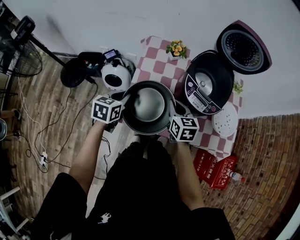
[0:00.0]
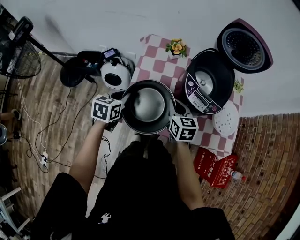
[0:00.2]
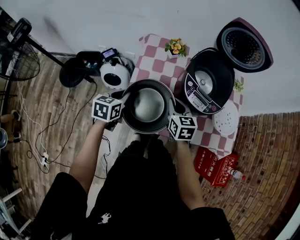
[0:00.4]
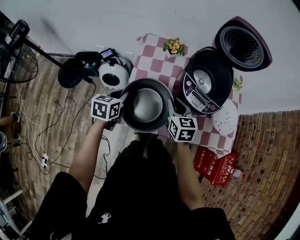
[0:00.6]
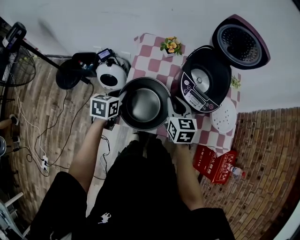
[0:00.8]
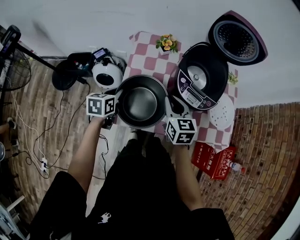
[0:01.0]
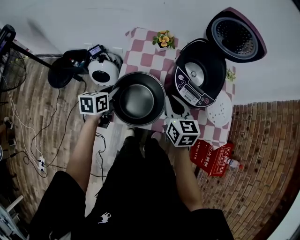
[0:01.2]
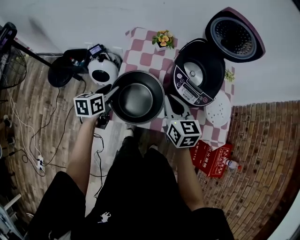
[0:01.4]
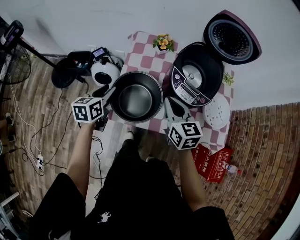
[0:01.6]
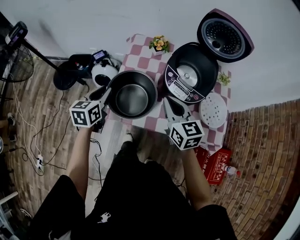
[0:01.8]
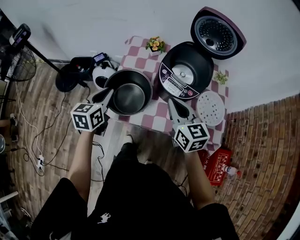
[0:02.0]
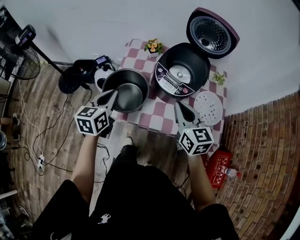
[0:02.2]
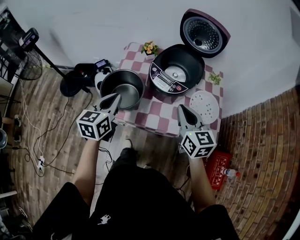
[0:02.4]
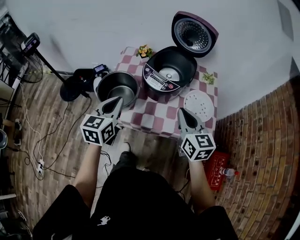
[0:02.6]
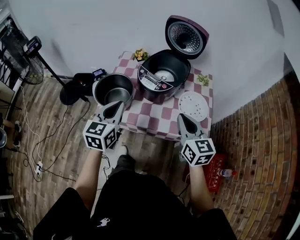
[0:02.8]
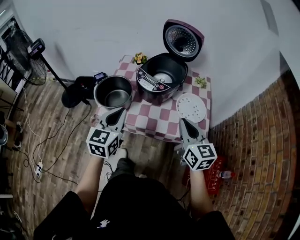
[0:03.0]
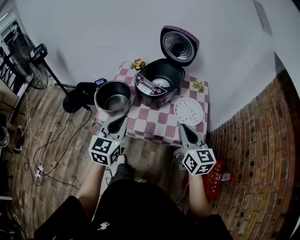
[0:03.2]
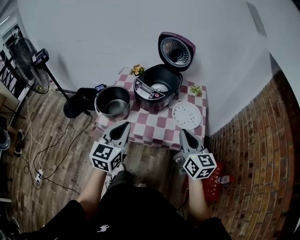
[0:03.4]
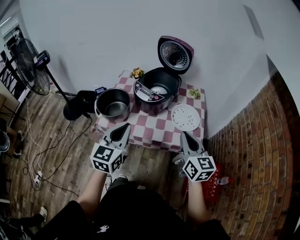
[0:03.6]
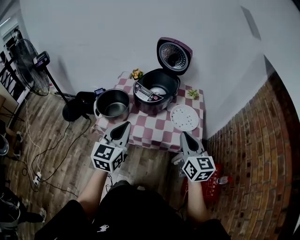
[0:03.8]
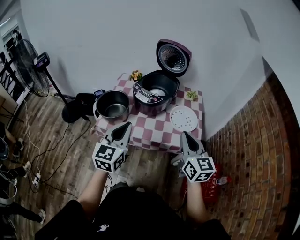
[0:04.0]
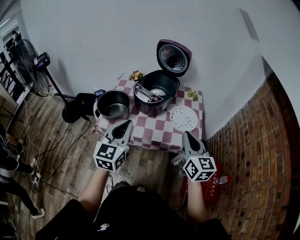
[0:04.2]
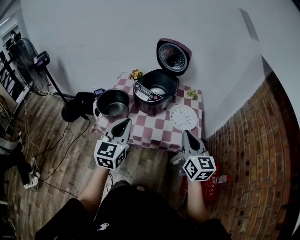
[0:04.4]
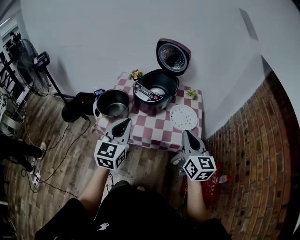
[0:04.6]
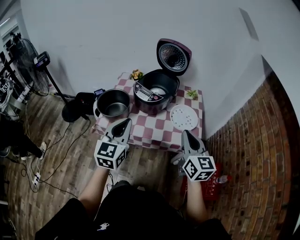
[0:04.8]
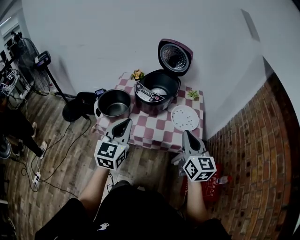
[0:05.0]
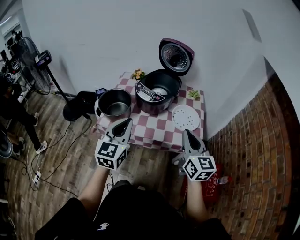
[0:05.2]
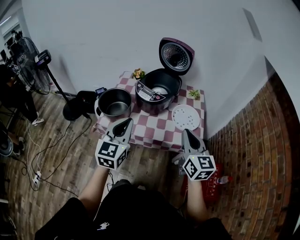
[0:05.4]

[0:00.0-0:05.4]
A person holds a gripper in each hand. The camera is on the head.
0:00.0 to 0:01.4: The right gripper travels upward by roughly 5 cm, while the left gripper opens its fingers.
0:01.4 to 0:02.8: The right gripper heads to the right, backward and upward, covering about 30 cm; the left gripper moves backward, to the right and upward, about 35 cm, turns by approximately 40 degrees, and closes up.
0:02.8 to 0:04.0: The left gripper travels backward, to the right and upward by about 15 cm. The right gripper heads backward and to the right, covering approximately 10 cm.
0:04.0 to 0:05.4: The two grippers keep their place.

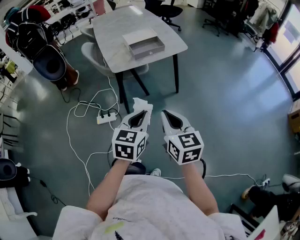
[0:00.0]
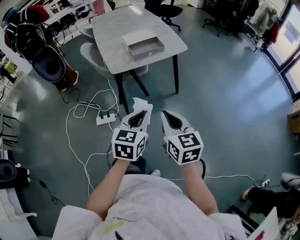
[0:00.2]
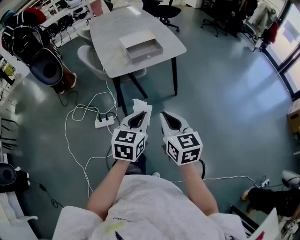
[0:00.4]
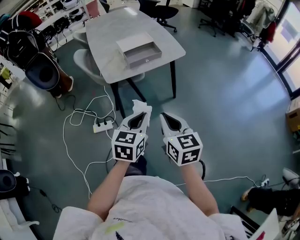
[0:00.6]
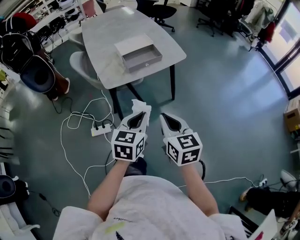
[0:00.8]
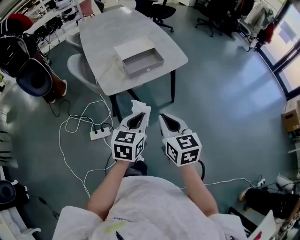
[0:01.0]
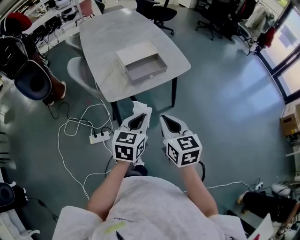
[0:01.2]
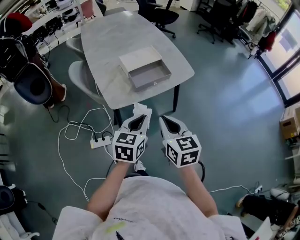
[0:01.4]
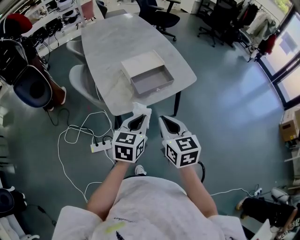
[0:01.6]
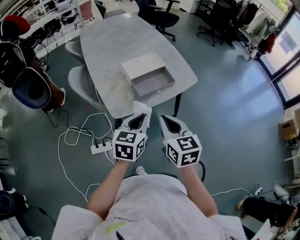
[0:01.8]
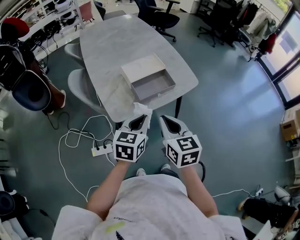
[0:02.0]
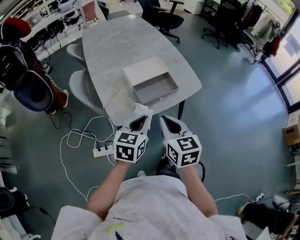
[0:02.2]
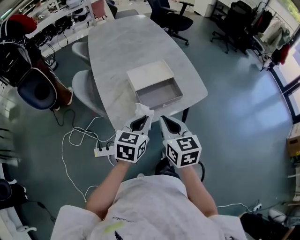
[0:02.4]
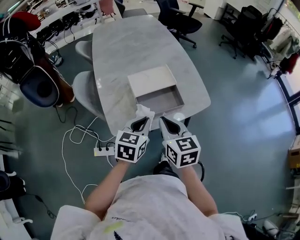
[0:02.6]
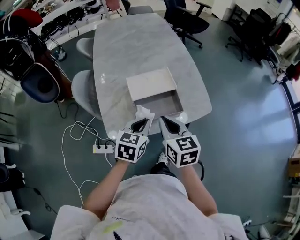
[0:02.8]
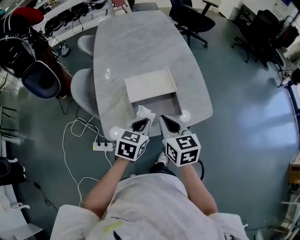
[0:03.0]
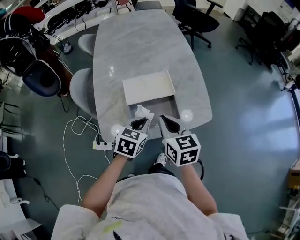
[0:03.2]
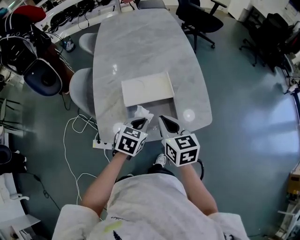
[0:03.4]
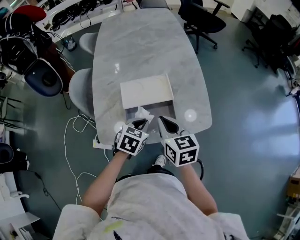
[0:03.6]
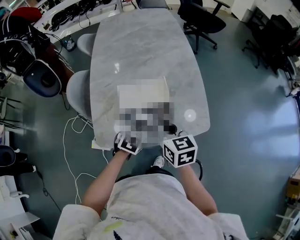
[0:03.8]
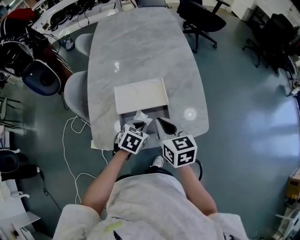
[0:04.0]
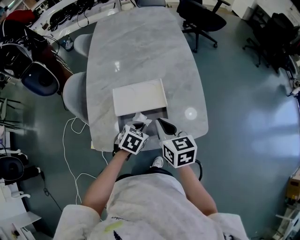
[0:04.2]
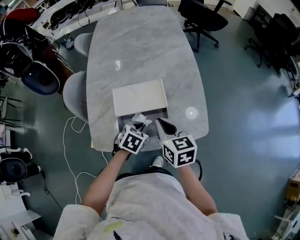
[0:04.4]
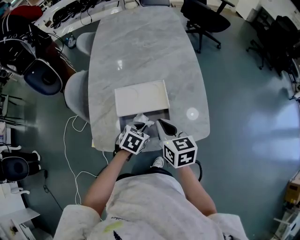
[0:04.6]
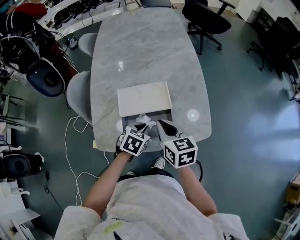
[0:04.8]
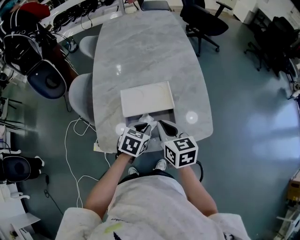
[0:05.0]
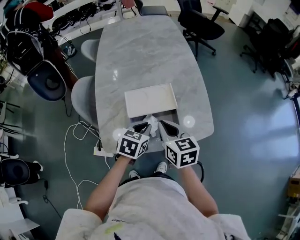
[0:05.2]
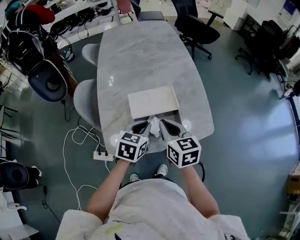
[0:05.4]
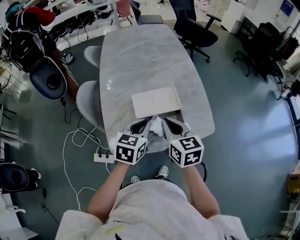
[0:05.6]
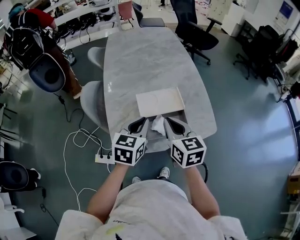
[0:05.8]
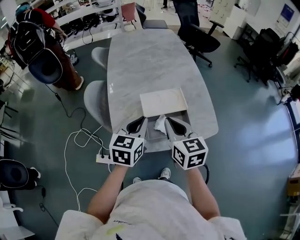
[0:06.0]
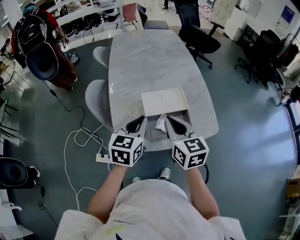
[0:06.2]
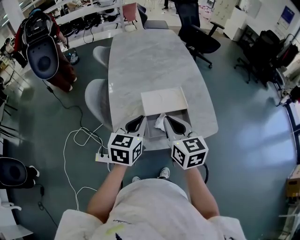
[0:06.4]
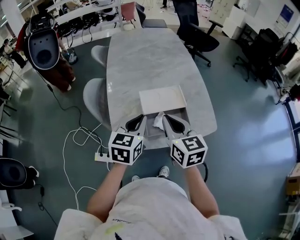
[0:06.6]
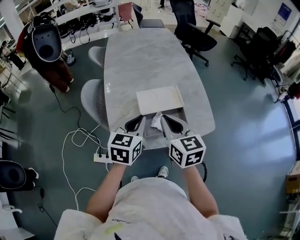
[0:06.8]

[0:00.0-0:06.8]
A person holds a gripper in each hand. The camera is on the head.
0:00.0 to 0:01.4: Both grippers move forward, roughly 25 cm.
0:01.4 to 0:02.8: The two grippers go about 20 cm forward.
0:02.8 to 0:04.0: The left gripper goes roughly 15 cm downward, forward and to the right, and swivels some 20 degrees. Meanwhile the right gripper moves forward and to the right, roughly 10 cm.
0:04.0 to 0:05.4: The left gripper goes about 10 cm upward and to the left, and swivels some 20 degrees. Meanwhile the right gripper travels to the left by approximately 5 cm.
0:05.4 to 0:06.8: The right gripper goes some 5 cm upward. The left gripper moves upward and to the left, approximately 10 cm.

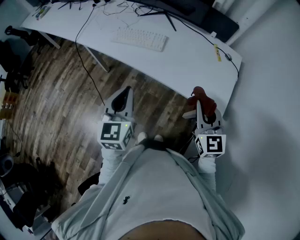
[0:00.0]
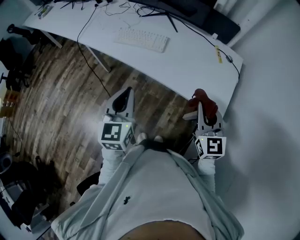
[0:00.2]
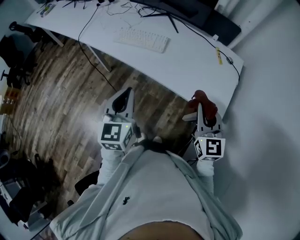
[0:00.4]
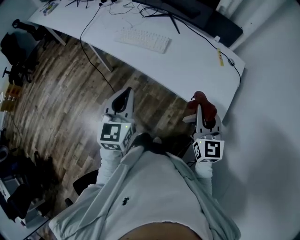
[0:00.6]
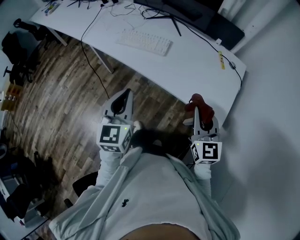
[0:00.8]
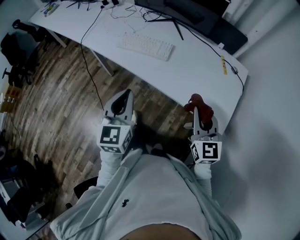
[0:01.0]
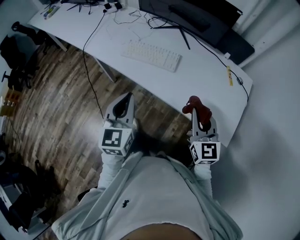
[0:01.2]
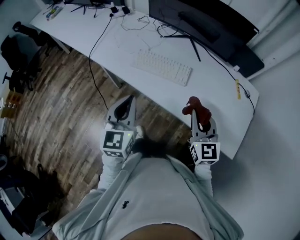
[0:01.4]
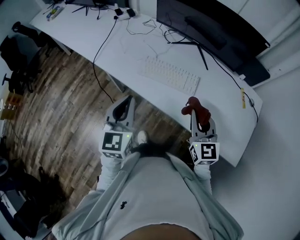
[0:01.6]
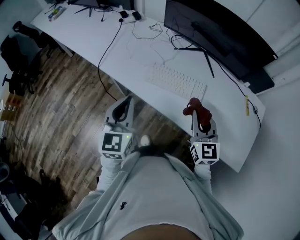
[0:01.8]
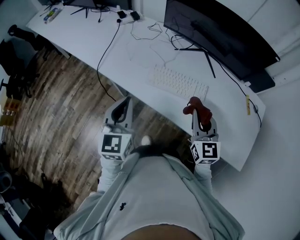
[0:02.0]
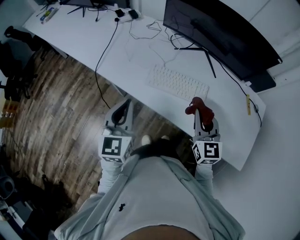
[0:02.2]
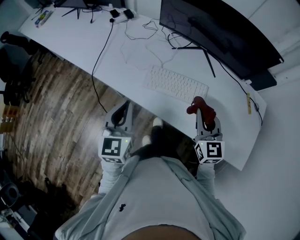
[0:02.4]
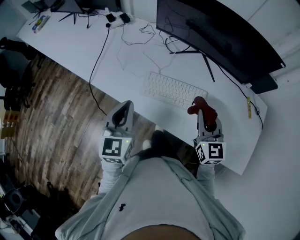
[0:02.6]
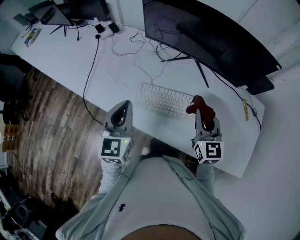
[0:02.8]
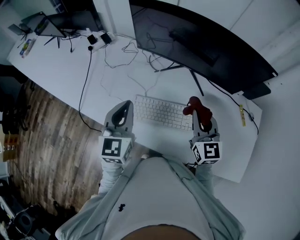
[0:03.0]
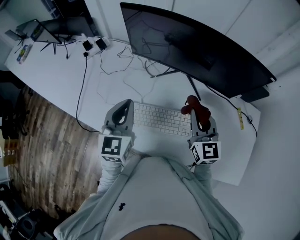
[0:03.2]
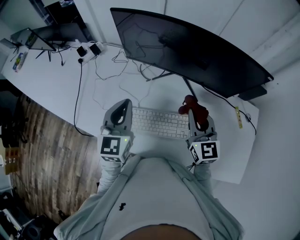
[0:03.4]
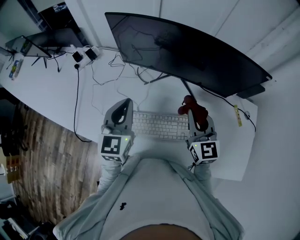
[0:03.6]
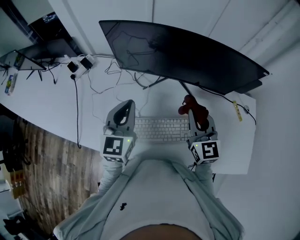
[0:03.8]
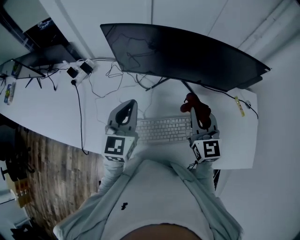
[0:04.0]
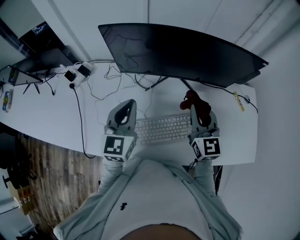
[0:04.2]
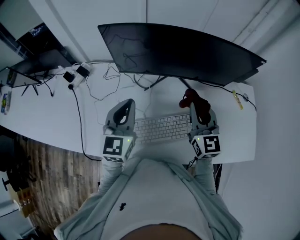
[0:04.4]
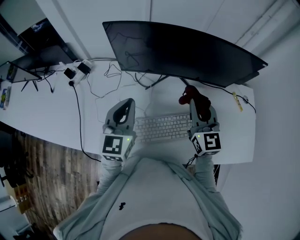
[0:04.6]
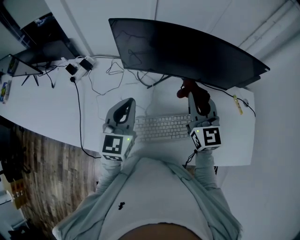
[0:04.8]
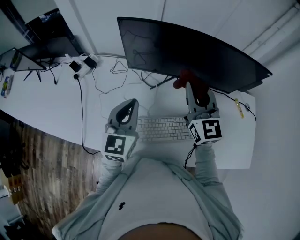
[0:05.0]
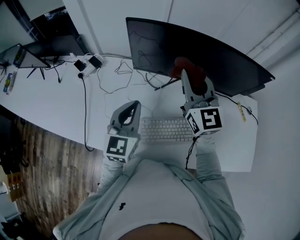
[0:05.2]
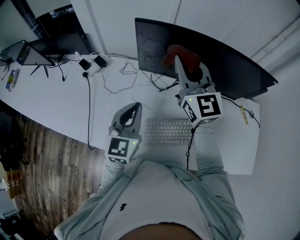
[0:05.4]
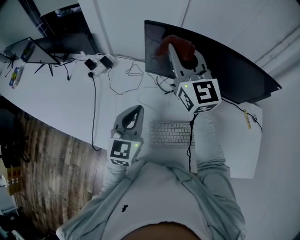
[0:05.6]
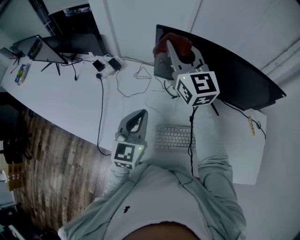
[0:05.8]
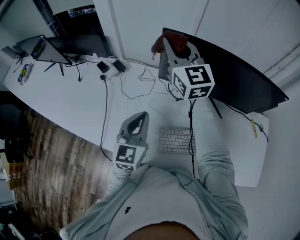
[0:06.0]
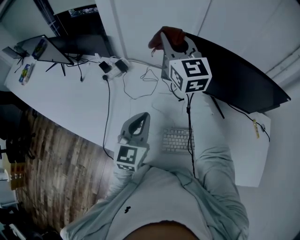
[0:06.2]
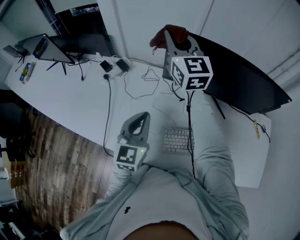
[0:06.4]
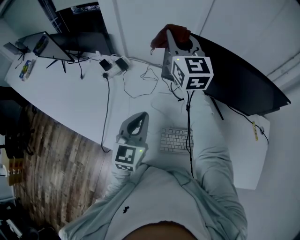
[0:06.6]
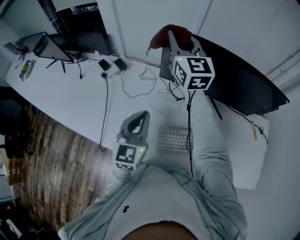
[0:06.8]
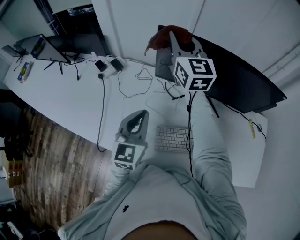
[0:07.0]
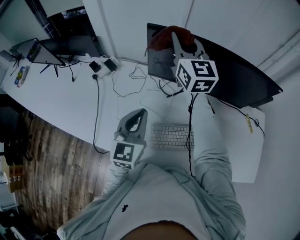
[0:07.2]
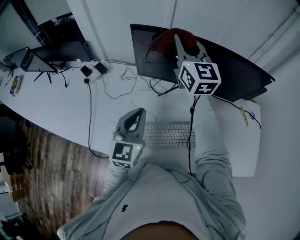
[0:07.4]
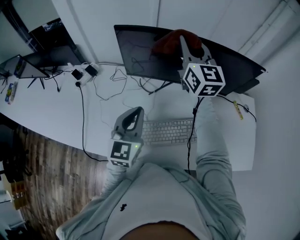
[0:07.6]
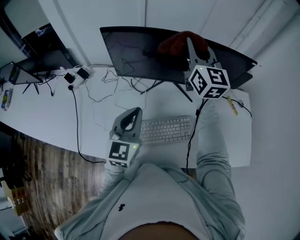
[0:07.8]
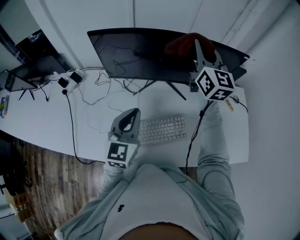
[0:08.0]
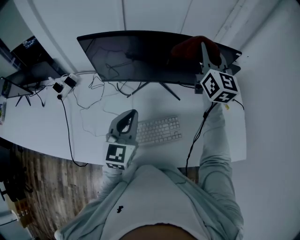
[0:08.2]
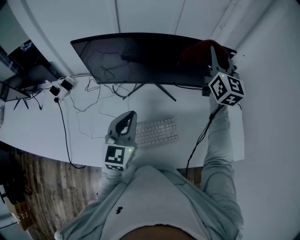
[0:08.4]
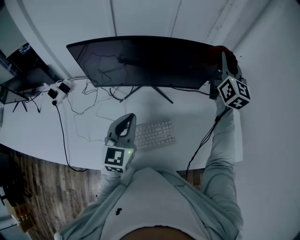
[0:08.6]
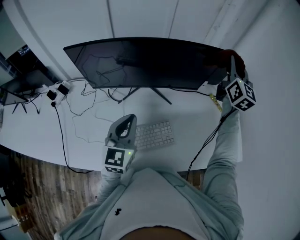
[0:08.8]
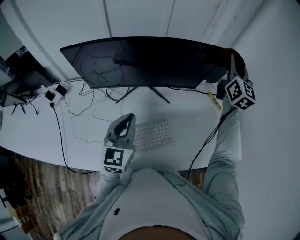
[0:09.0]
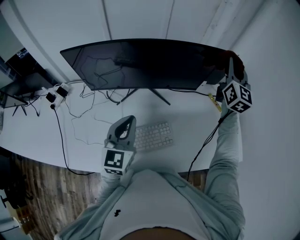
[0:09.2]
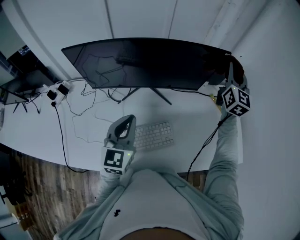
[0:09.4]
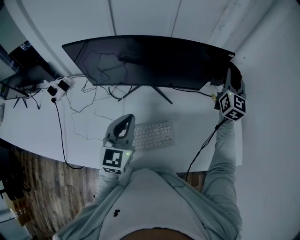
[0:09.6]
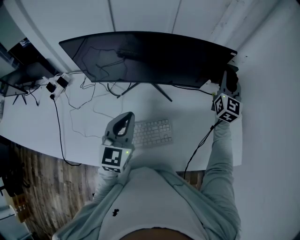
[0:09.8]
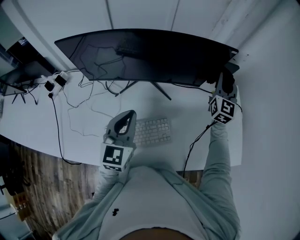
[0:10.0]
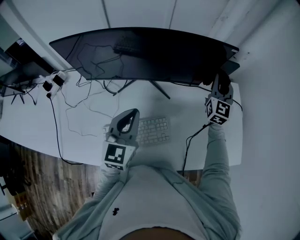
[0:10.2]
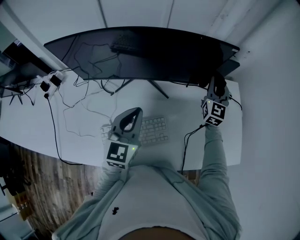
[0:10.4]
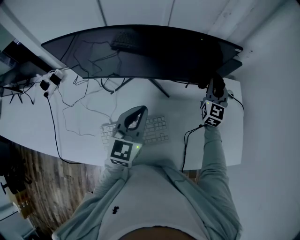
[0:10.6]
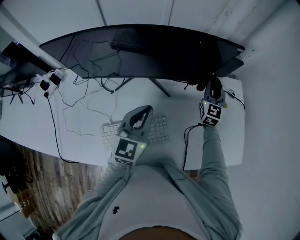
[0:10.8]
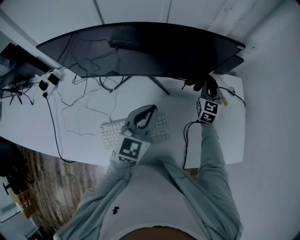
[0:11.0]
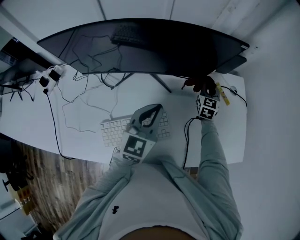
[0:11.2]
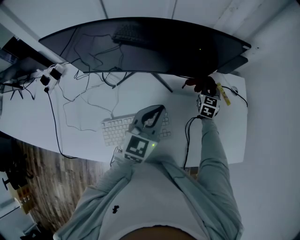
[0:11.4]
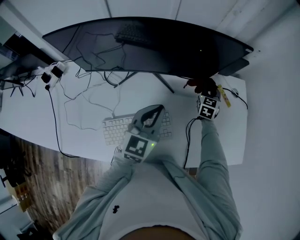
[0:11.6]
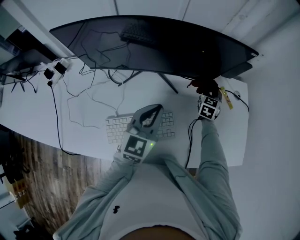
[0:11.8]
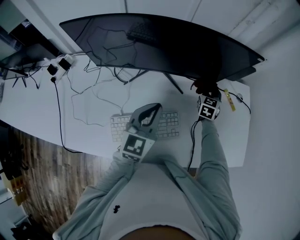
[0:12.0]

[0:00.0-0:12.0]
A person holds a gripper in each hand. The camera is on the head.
0:00.0 to 0:01.6: Both grippers travel together forward and to the left, some 25 cm.
0:01.6 to 0:03.0: Both grippers move forward, some 25 cm.
0:03.0 to 0:04.4: The left gripper heads forward, covering roughly 15 cm, and changes its angle by approximately 20 degrees, while the right gripper travels forward by approximately 5 cm.
0:04.4 to 0:06.0: The left gripper travels to the left by approximately 10 cm; the right gripper heads to the left, forward and upward, covering approximately 35 cm, and rotates roughly 30 degrees.
0:06.0 to 0:07.6: The left gripper is displaced to the right by about 10 cm; the right gripper shifts approximately 20 cm to the right.
0:07.6 to 0:09.0: The right gripper heads to the right, covering some 40 cm, and rotates approximately 30 degrees. The left gripper goes roughly 15 cm to the right.
0:09.0 to 0:10.4: The left gripper heads to the right, covering some 5 cm, while the right gripper goes approximately 20 cm downward.
0:10.4 to 0:12.0: The right gripper heads downward, covering some 15 cm, and turns by about 30 degrees.
